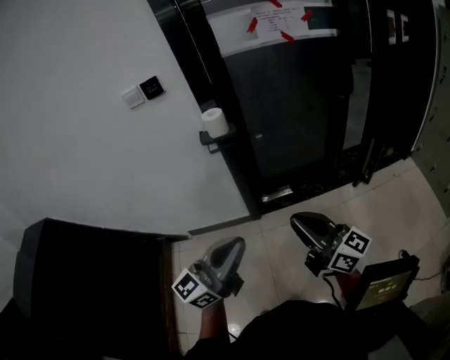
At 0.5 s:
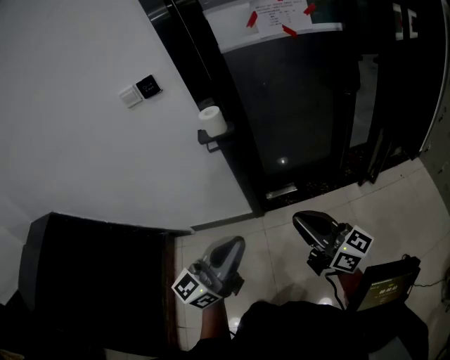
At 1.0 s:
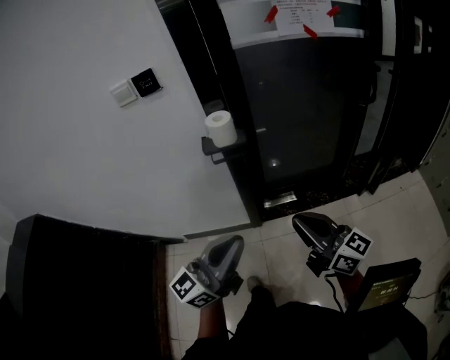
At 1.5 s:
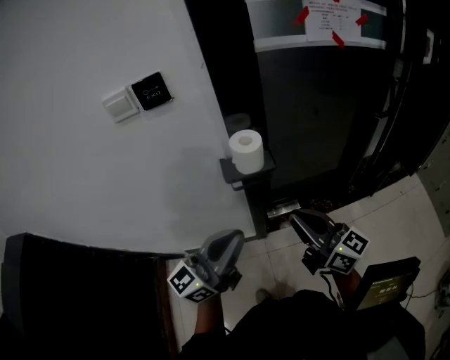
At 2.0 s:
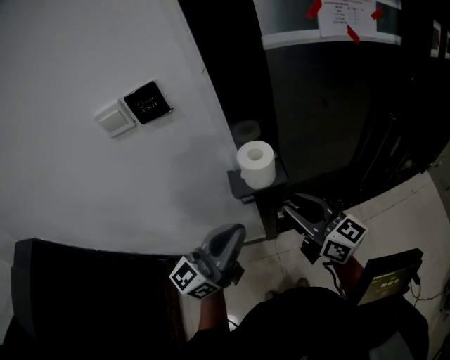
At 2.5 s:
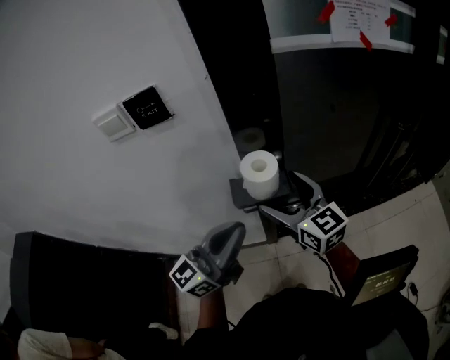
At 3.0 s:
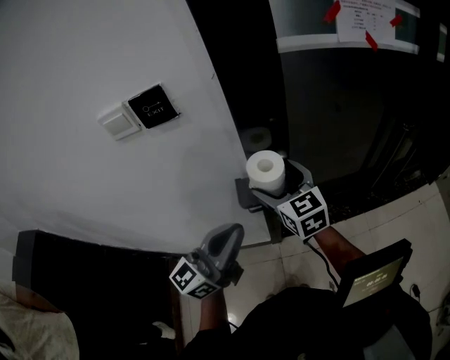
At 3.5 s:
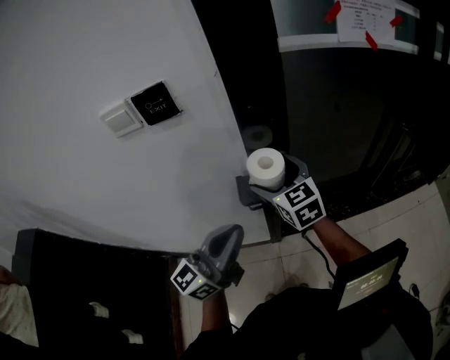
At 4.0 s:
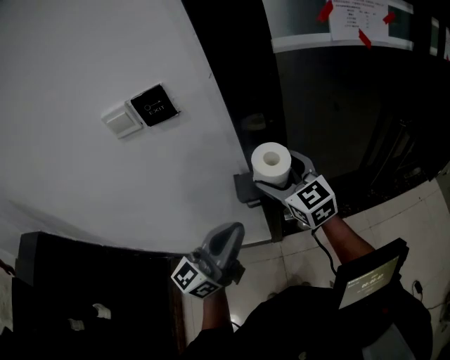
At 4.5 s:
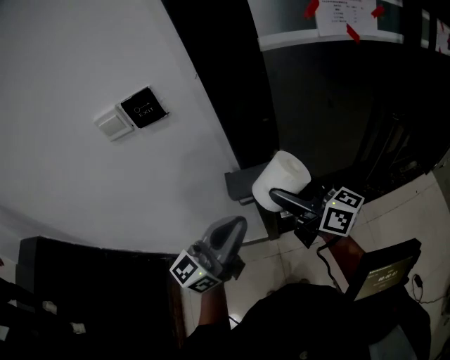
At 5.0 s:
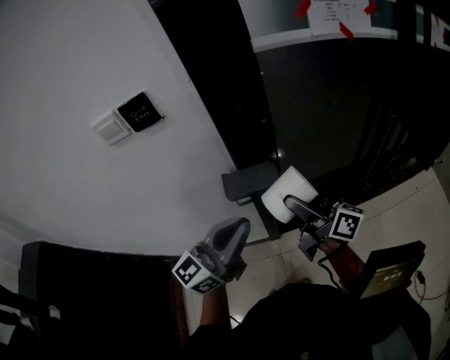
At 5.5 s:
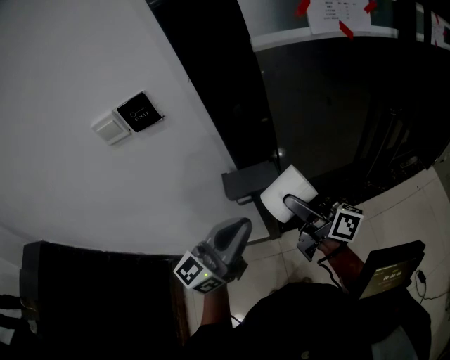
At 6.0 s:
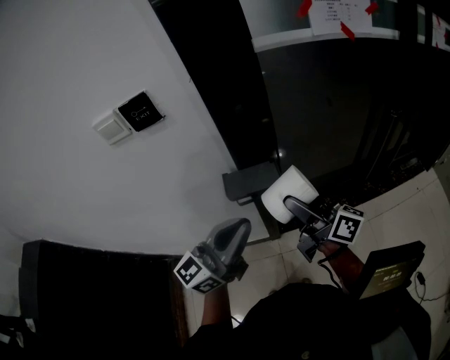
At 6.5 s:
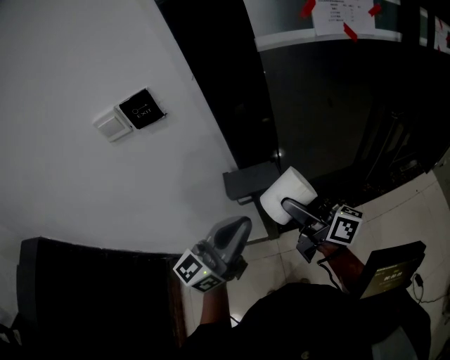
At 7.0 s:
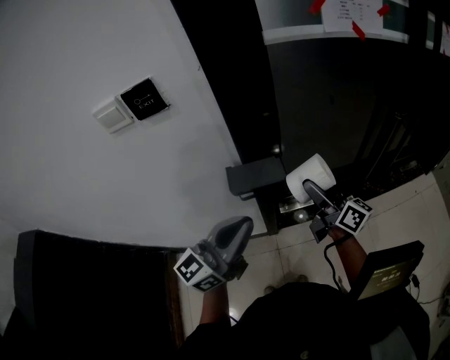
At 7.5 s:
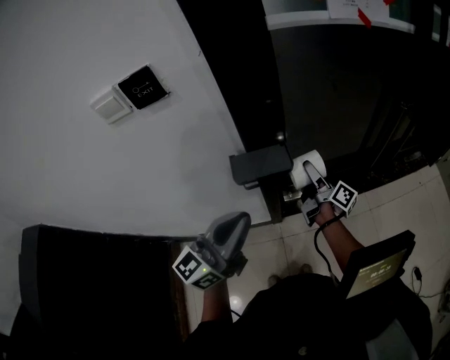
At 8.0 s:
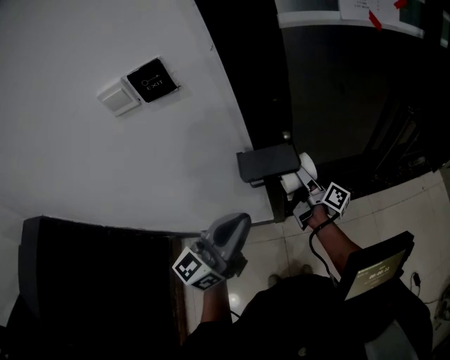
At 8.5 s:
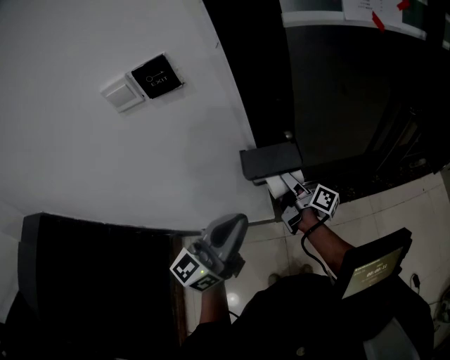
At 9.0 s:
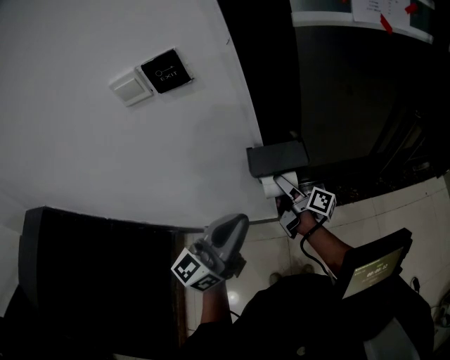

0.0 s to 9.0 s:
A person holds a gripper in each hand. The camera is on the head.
0.0 to 2.0 s: Both grippers are carried forward and to the left, approximately 40 cm.
2.0 to 4.5 s: The right gripper opens up.
4.5 to 7.0 s: The right gripper goes roughly 10 cm to the right and downward.
7.0 to 9.0 s: The right gripper shifts about 20 cm to the left and downward, and swivels some 40 degrees. The left gripper shifts about 5 cm to the left.

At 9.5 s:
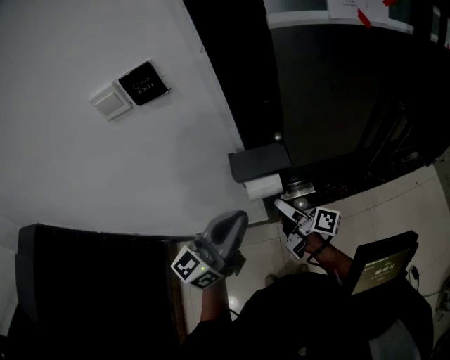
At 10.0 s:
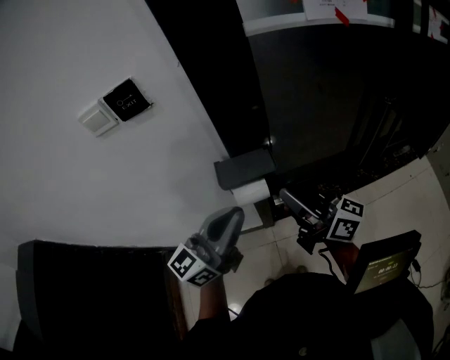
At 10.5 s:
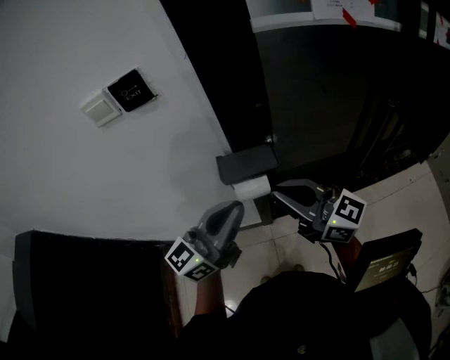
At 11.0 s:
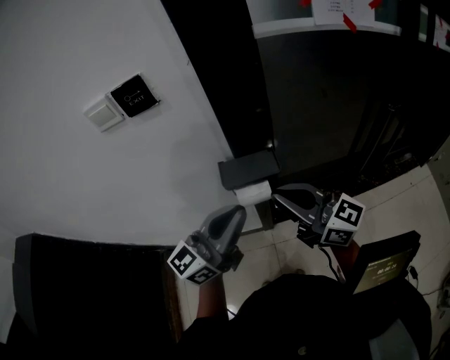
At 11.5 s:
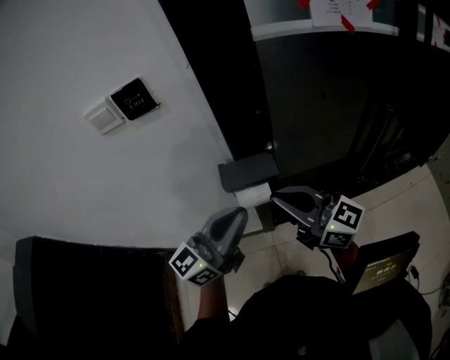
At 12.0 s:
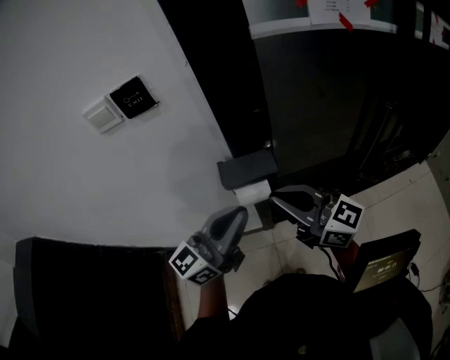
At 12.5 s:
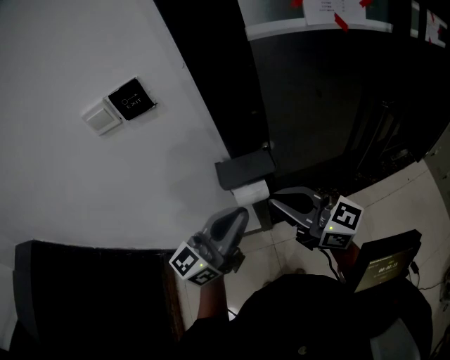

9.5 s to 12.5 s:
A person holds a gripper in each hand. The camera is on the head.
9.5 to 11.0 s: The right gripper moves upward, some 15 cm, twists approximately 60 degrees counterclockwise, seen from behind, and closes up.
11.0 to 12.5 s: Both grippers stay put.

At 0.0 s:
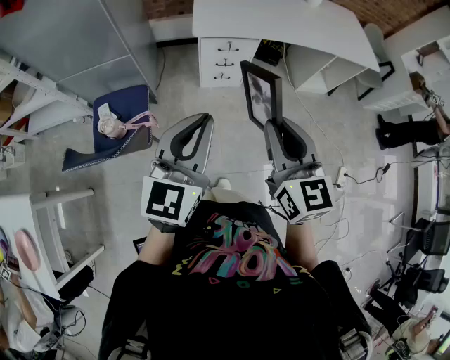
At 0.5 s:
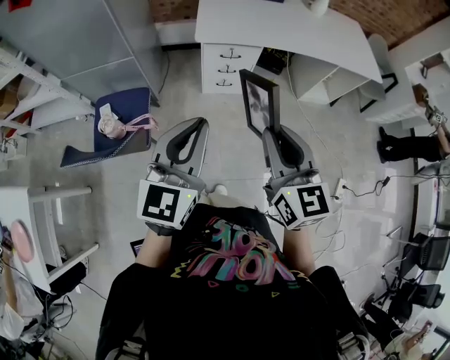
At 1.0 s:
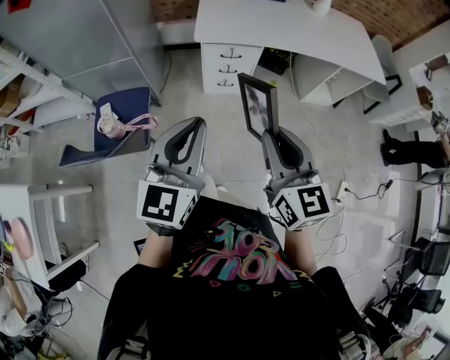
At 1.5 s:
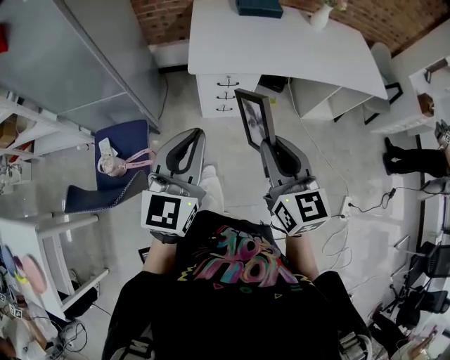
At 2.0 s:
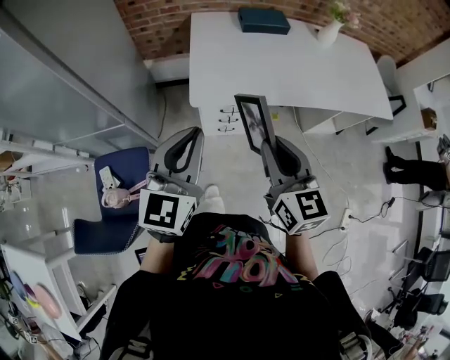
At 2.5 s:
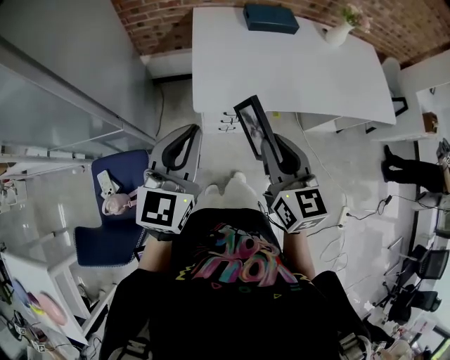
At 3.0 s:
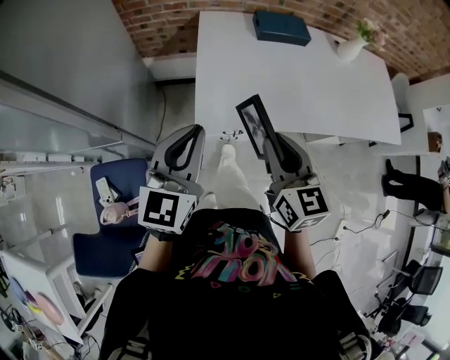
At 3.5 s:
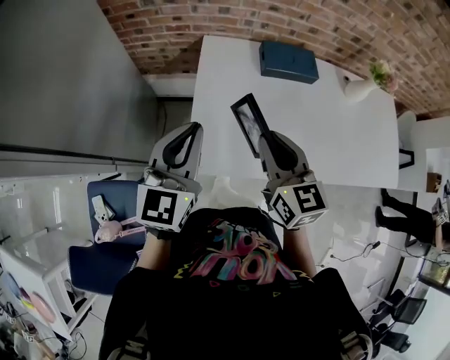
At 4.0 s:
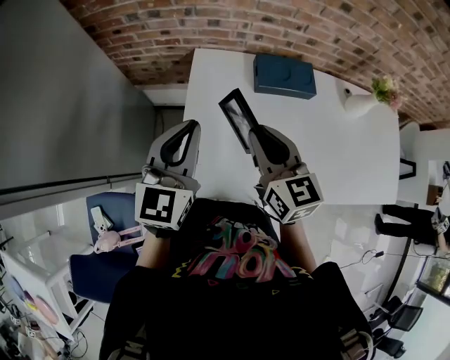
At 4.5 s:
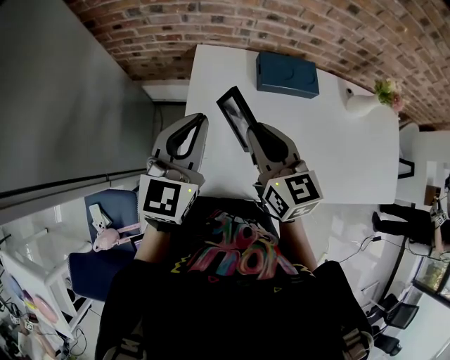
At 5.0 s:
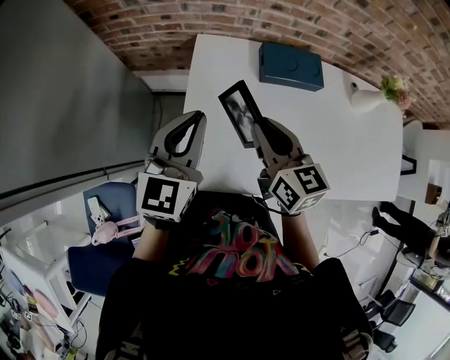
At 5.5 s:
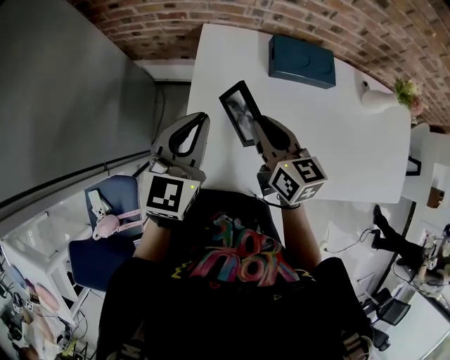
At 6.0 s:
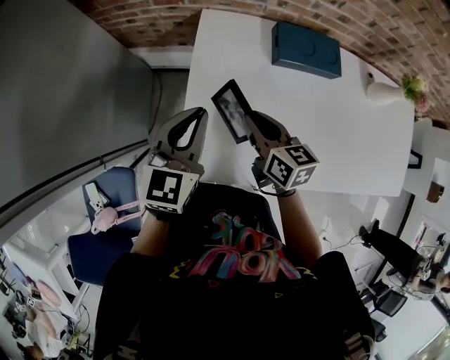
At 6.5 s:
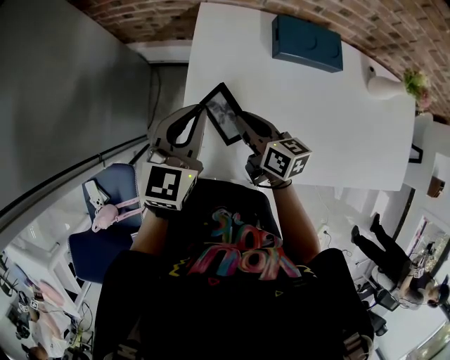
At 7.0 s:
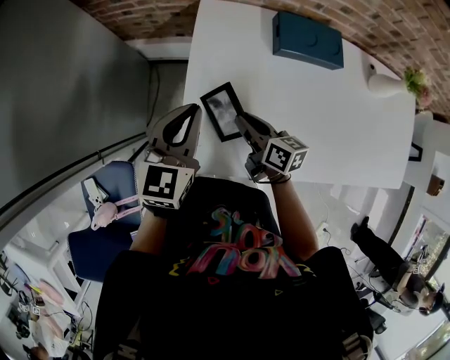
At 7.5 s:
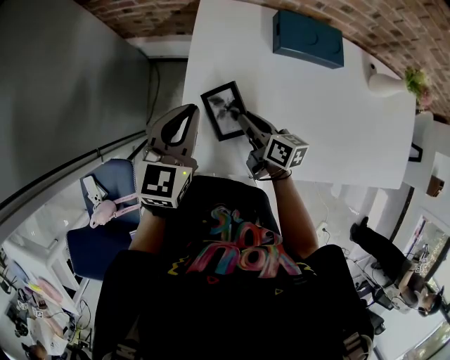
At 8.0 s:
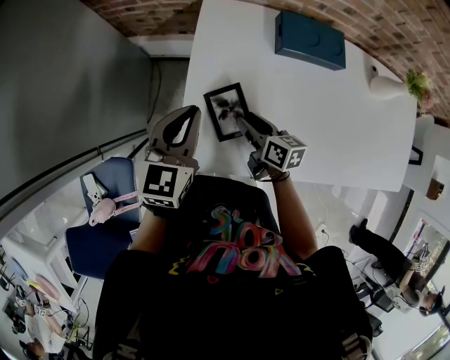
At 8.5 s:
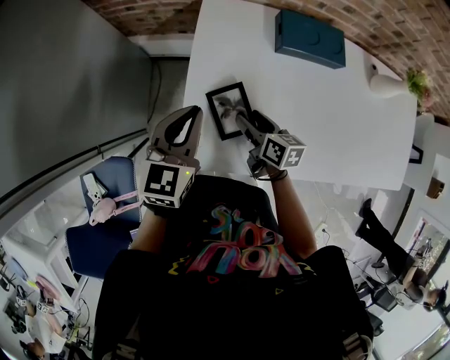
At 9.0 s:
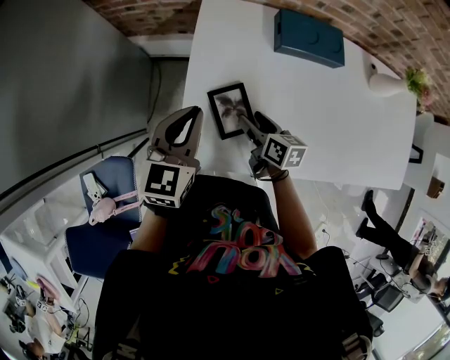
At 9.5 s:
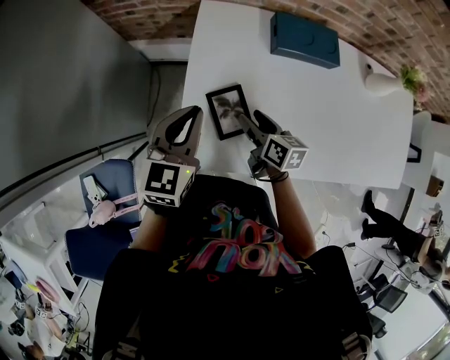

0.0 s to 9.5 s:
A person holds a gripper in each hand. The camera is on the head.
0.0 to 2.0 s: Both grippers move forward, approximately 35 cm.
2.0 to 4.0 s: Both grippers are carried forward, some 40 cm.
4.0 to 5.5 s: Both grippers move downward, approximately 10 cm.
5.5 to 7.5 s: The left gripper travels downward by roughly 5 cm. Meanwhile the right gripper travels downward by approximately 15 cm, and rotates roughly 30 degrees.
7.5 to 9.5 s: The right gripper opens up.

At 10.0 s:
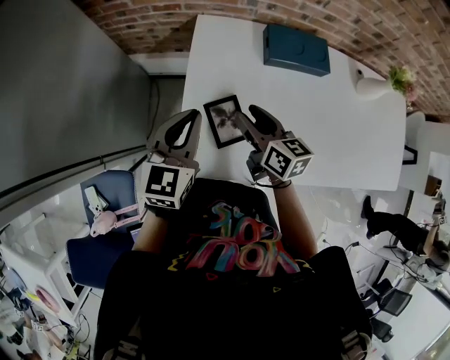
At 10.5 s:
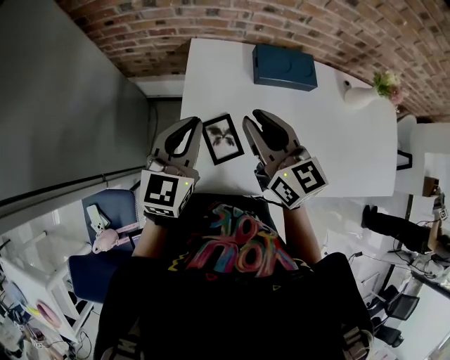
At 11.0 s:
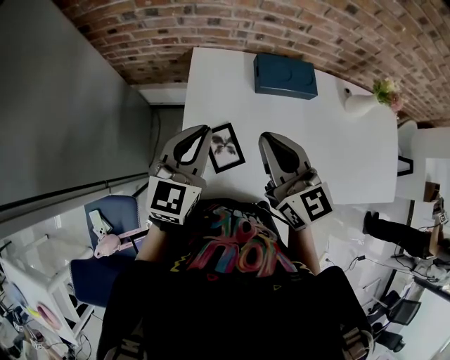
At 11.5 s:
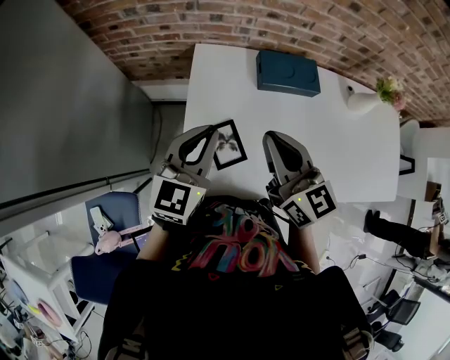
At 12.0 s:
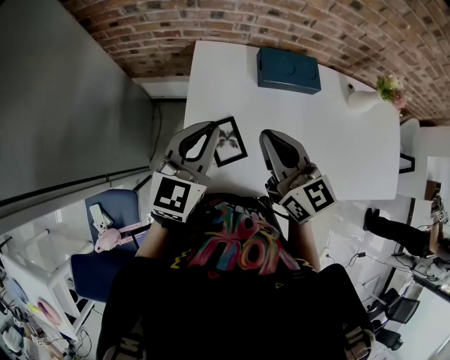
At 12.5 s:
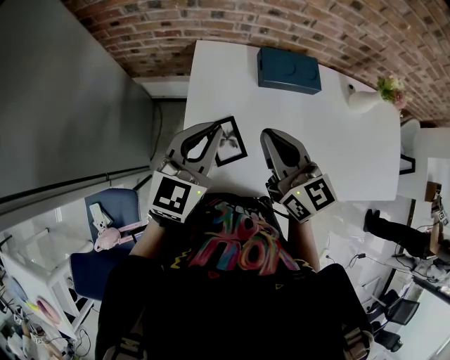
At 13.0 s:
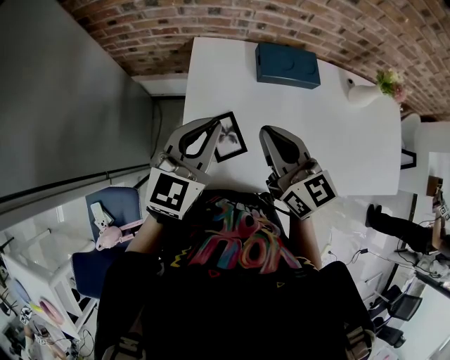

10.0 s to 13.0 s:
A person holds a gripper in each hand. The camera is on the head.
10.0 to 11.5 s: The right gripper travels upward by approximately 15 cm, changes its angle by about 30 degrees, and closes up. Meanwhile the left gripper is displaced upward by some 5 cm.
11.5 to 13.0 s: There are only small adjustments of the grippers.

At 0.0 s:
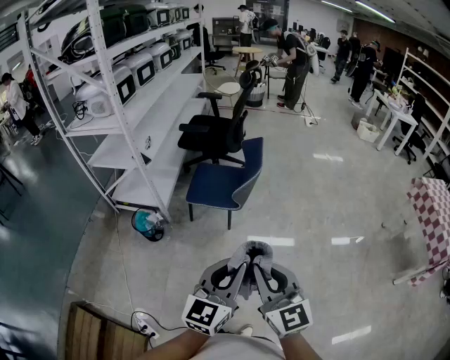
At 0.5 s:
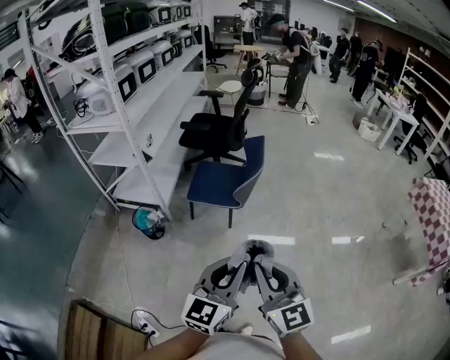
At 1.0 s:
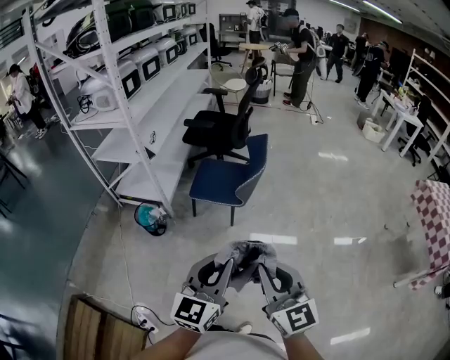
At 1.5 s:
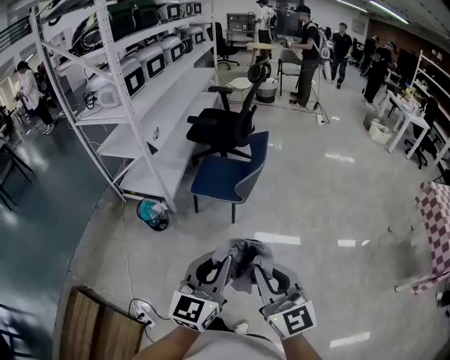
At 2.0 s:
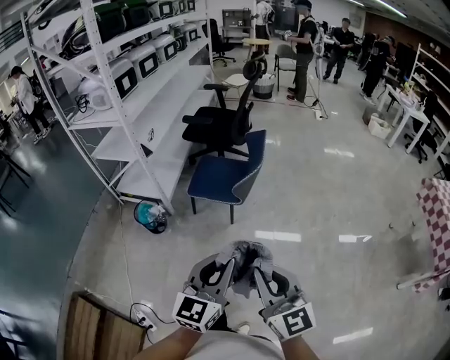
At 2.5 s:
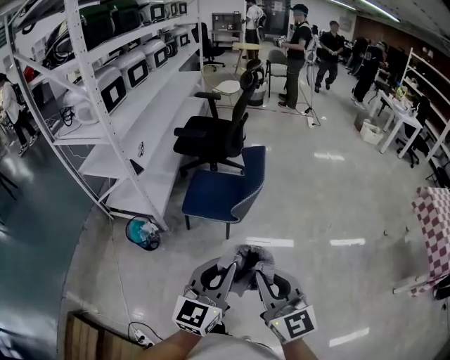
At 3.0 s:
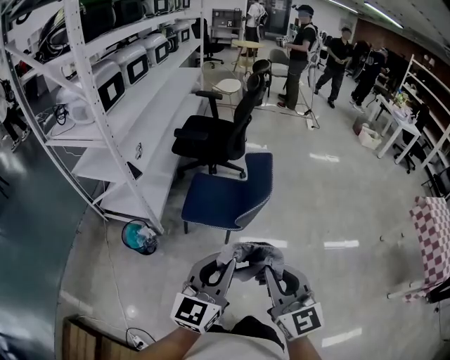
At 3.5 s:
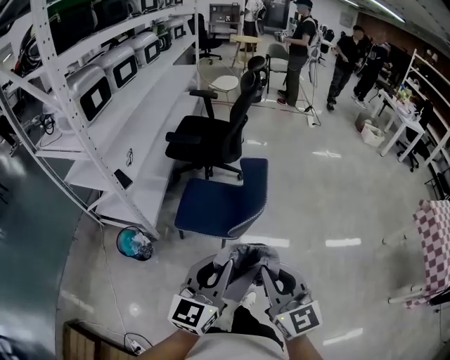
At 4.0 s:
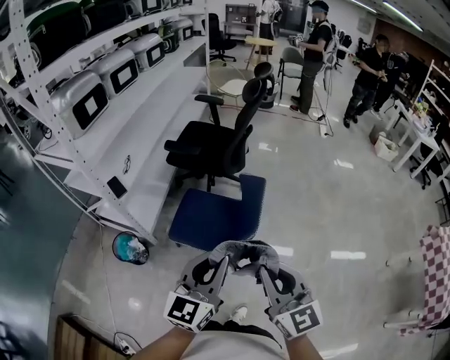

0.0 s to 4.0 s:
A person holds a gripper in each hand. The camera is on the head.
0.0 to 2.0 s: The grippers move only a little.
2.0 to 4.0 s: Both grippers move forward, roughly 40 cm.
